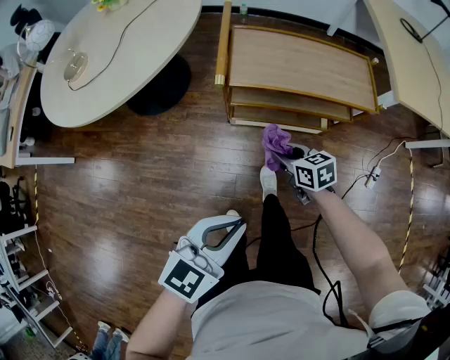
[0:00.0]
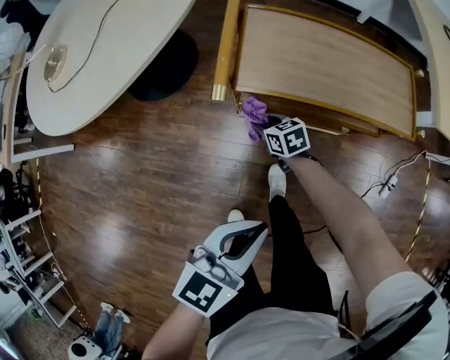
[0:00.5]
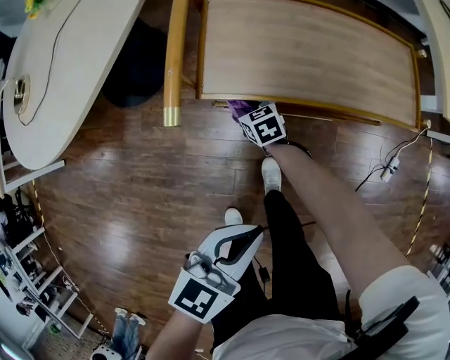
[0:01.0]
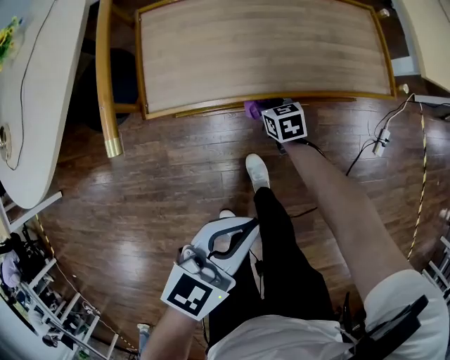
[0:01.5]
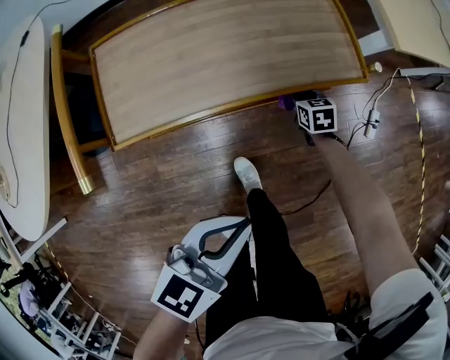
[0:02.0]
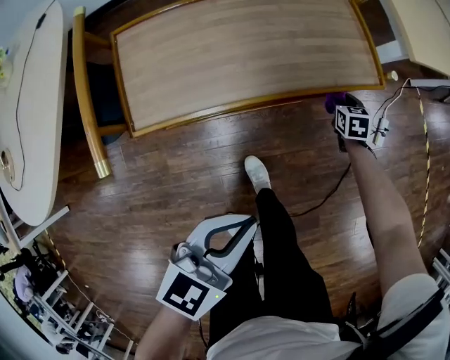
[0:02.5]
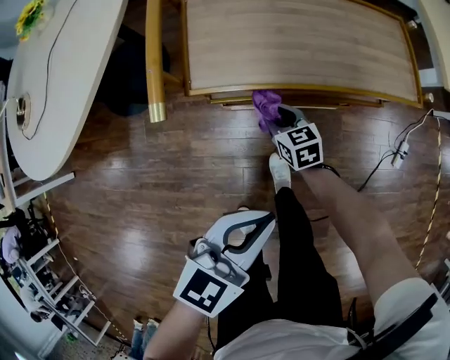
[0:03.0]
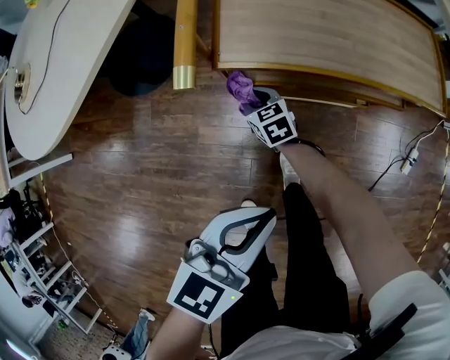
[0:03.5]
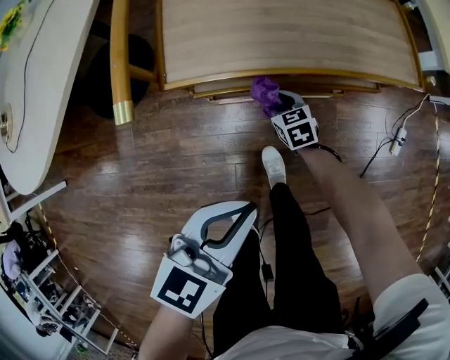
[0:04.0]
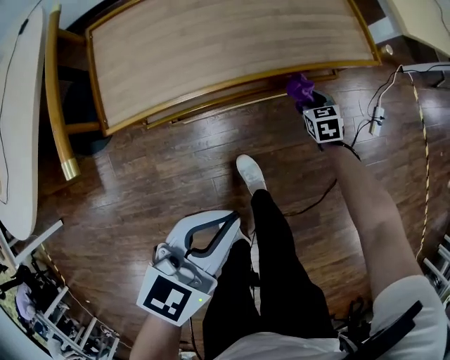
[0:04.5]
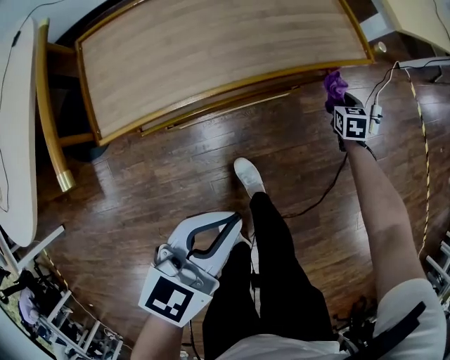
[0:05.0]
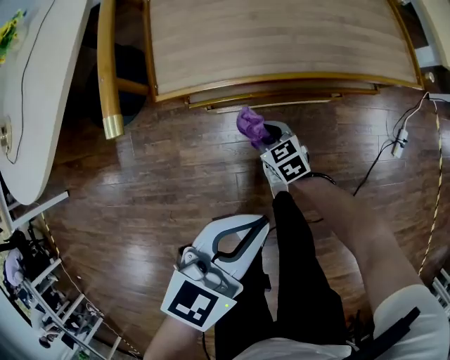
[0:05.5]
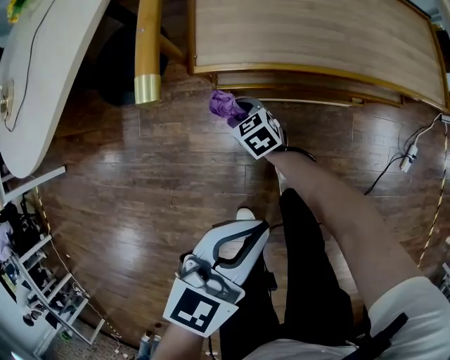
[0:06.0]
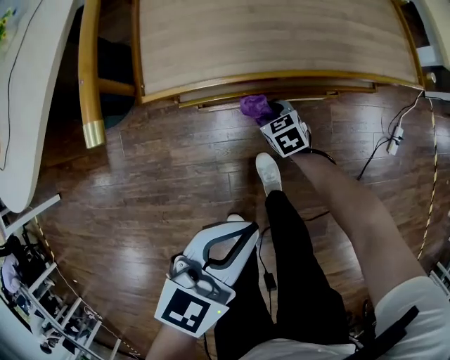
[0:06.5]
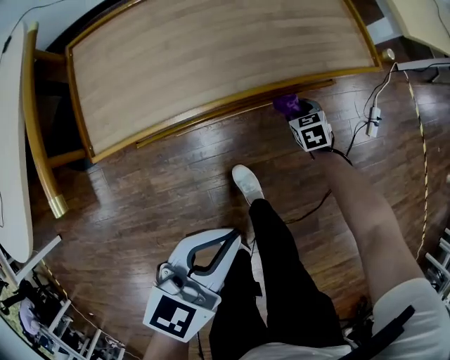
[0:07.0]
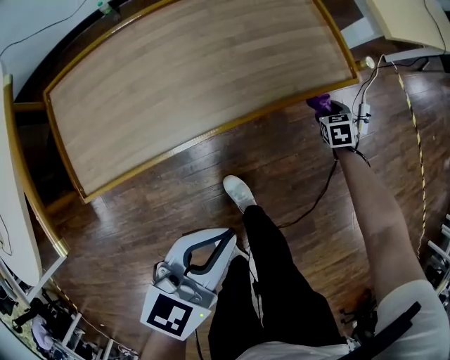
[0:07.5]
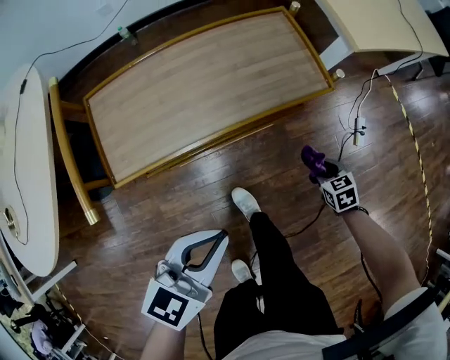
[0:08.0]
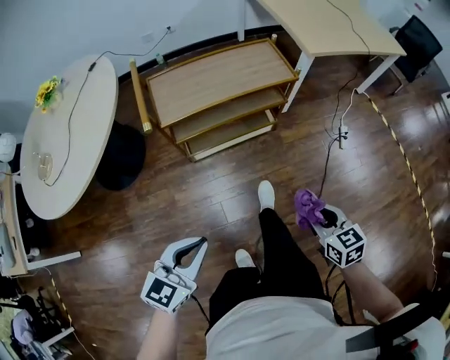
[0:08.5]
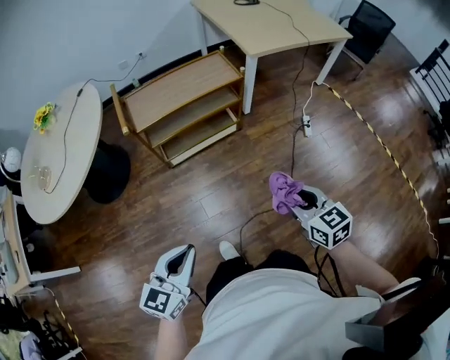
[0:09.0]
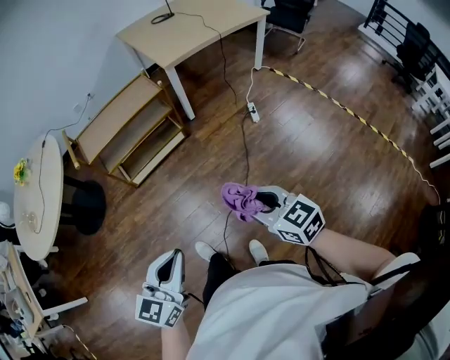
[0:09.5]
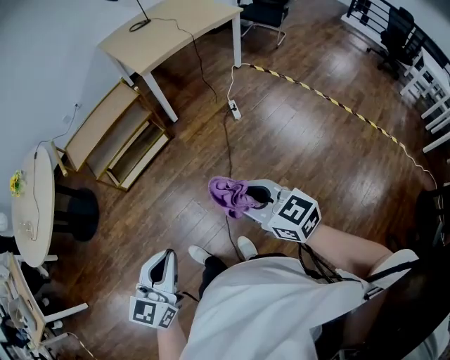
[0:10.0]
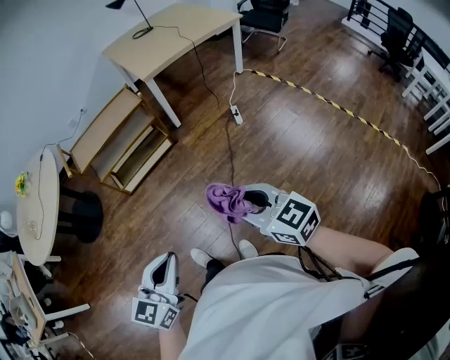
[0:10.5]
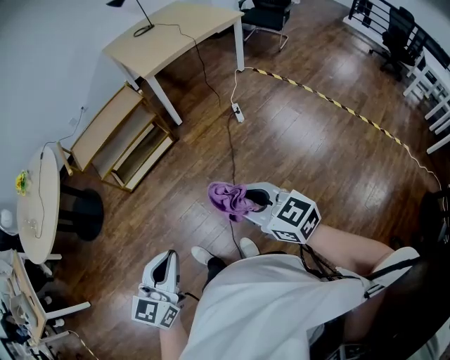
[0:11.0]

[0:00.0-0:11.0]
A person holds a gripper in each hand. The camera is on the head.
0.0 to 2.0 s: The left gripper changes place by some 30 cm, and rotates about 20 degrees. The right gripper ends up roughly 50 cm from where it was, and turns by about 40 degrees.
2.0 to 3.5 s: The left gripper moves roughly 15 cm. The right gripper ends up about 40 cm from where it was, and rotates about 40 degrees.
5.5 to 7.5 s: The right gripper shifts by roughly 50 cm, and rotates some 50 degrees, while the left gripper shifts by roughly 10 cm.
7.5 to 9.0 s: The two grippers travel together, some 50 cm. The right gripper points its fingers some 30 degrees further upward.
9.0 to 11.0 s: Both grippers move to the right and backward, some 35 cm.

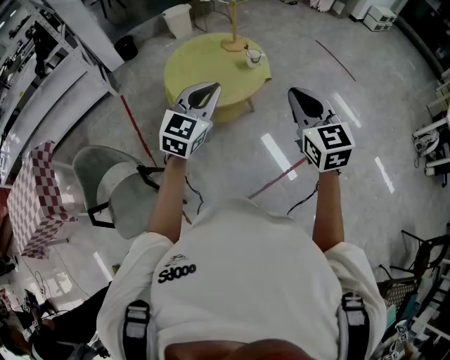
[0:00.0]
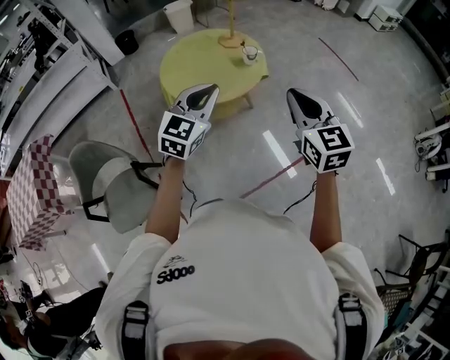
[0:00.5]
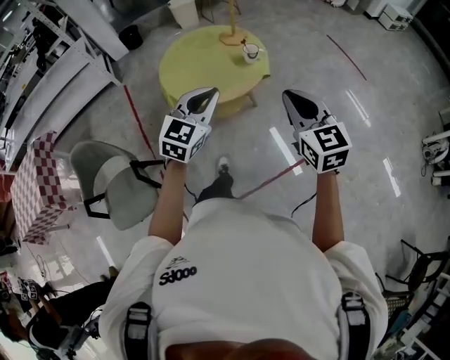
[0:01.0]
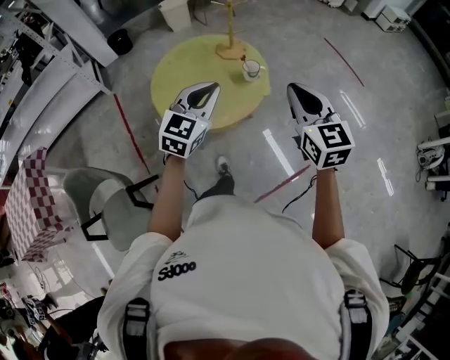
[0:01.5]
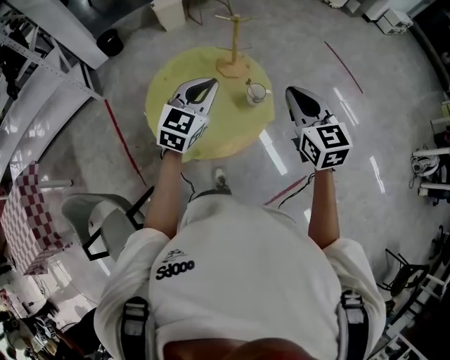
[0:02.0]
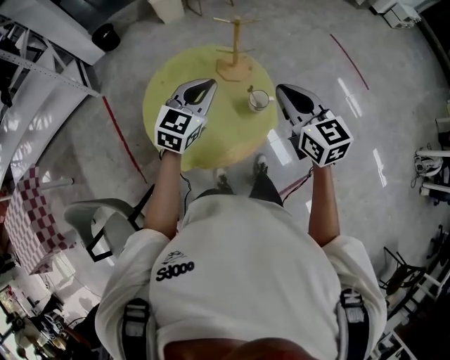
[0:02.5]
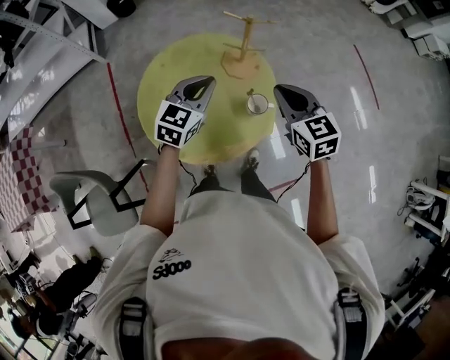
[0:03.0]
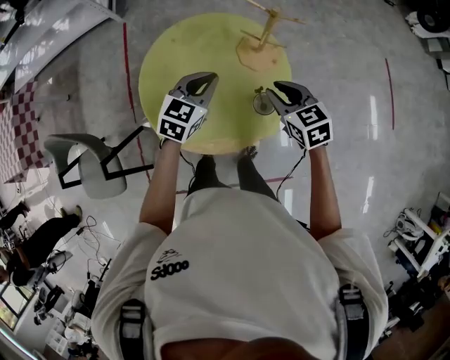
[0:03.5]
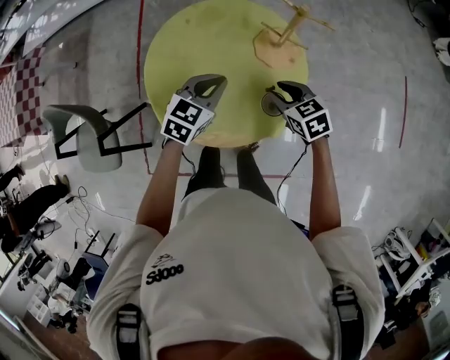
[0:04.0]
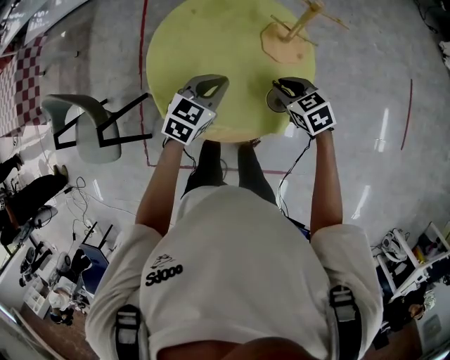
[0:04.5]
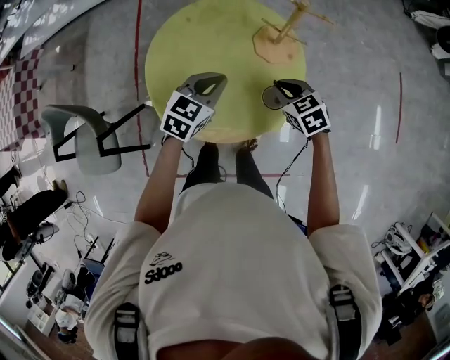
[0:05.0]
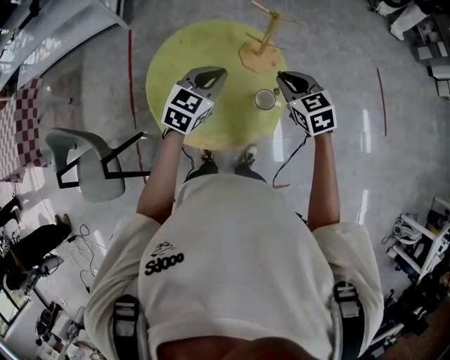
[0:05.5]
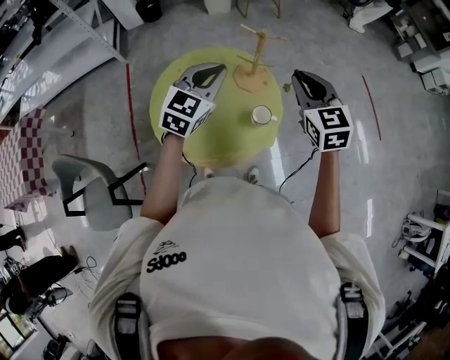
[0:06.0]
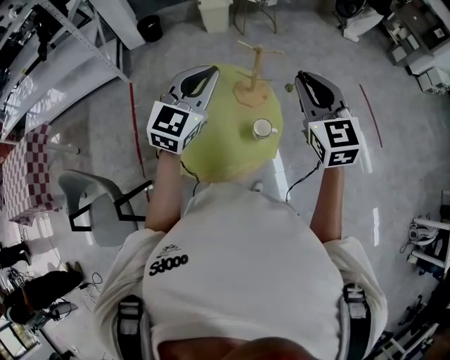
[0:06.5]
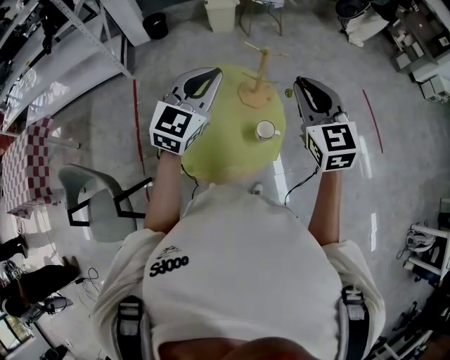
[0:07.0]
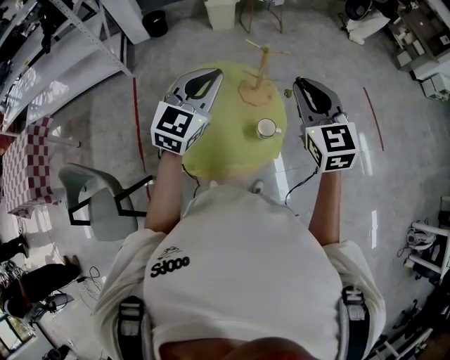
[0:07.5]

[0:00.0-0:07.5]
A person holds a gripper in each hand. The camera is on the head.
0.0 to 2.0 s: The two grippers go some 35 cm forward.
2.0 to 4.0 s: The grippers both shift downward by some 25 cm. The left gripper swivels about 40 degrees. The right gripper turns by roughly 60 degrees, and opens up.
4.0 to 5.5 s: The two grippers go roughly 10 cm upward. The right gripper turns by roughly 20 degrees, and closes.
5.5 to 7.5 s: Both grippers move upward, about 20 cm. The left gripper turns by roughly 20 degrees, while the right gripper swivels approximately 30 degrees.

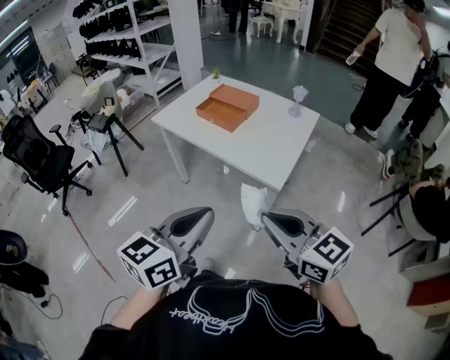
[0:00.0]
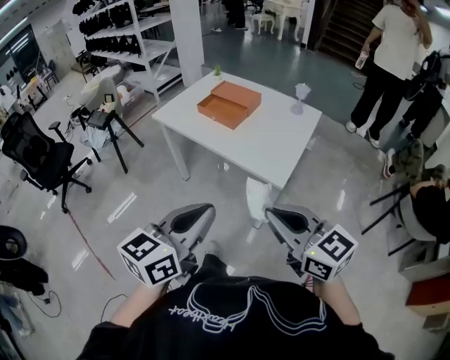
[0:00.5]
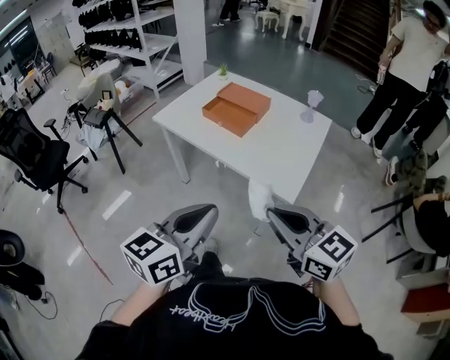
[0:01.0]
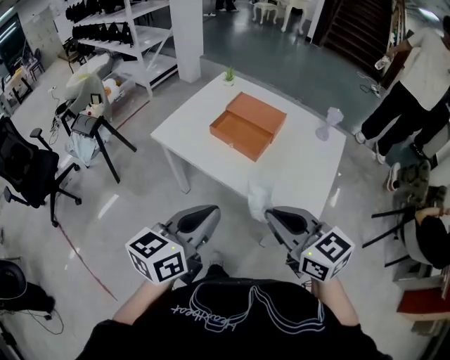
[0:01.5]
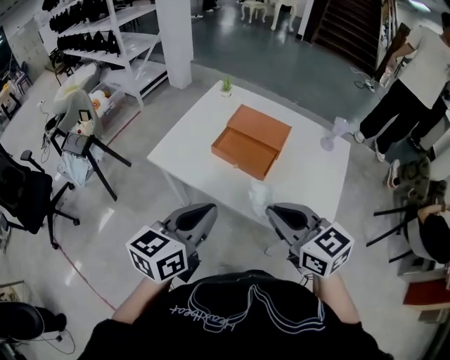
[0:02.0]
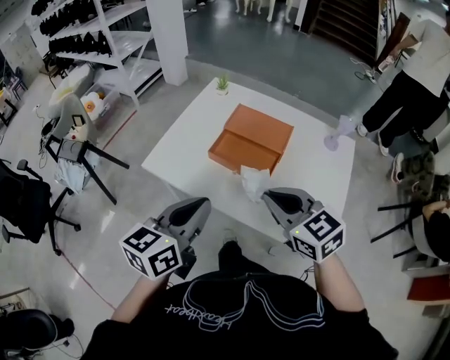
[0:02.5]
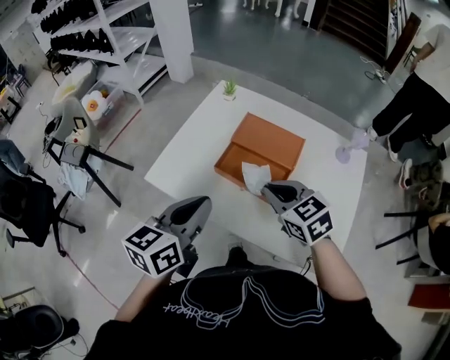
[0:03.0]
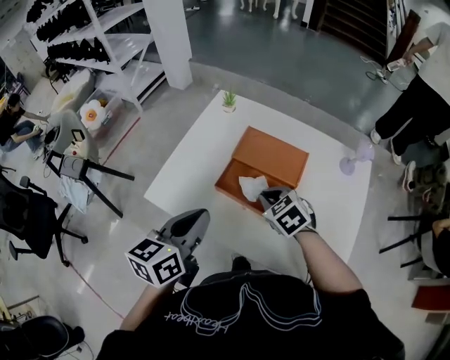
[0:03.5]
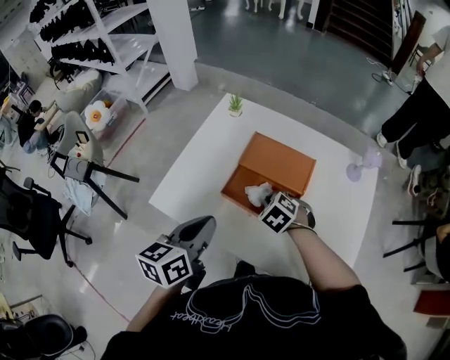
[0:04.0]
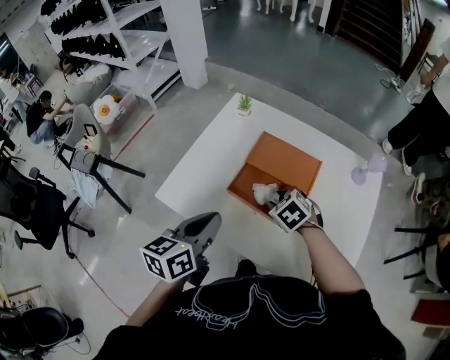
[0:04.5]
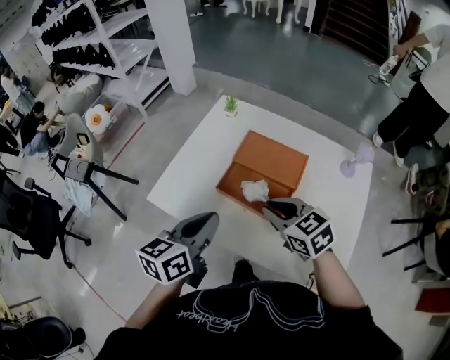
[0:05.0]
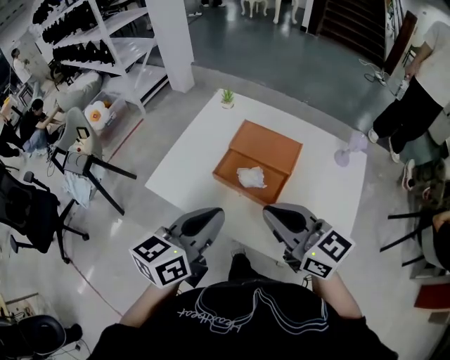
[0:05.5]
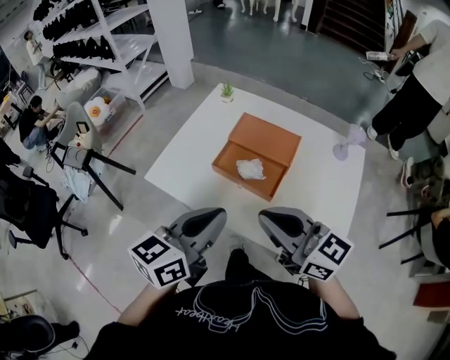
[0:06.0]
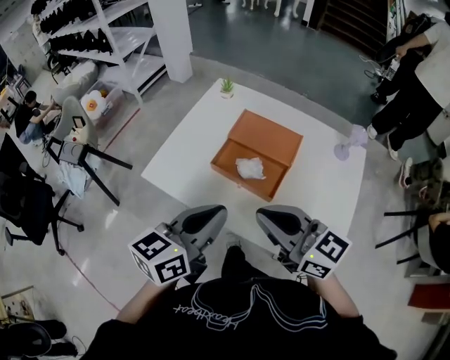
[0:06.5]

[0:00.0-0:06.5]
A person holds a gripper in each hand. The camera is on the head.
0.0 to 2.0 s: The two grippers go approximately 35 cm forward.
2.0 to 4.5 s: The left gripper moves forward, about 20 cm. Meanwhile the right gripper moves forward and downward, about 35 cm, points its fingers roughly 40 degrees further downward, and opens its fingers.
4.5 to 6.5 s: The right gripper shifts approximately 25 cm upward and backward, angles its fingers upward, by some 60 degrees, and closes, while the left gripper moves backward, upward and to the right, roughly 10 cm.

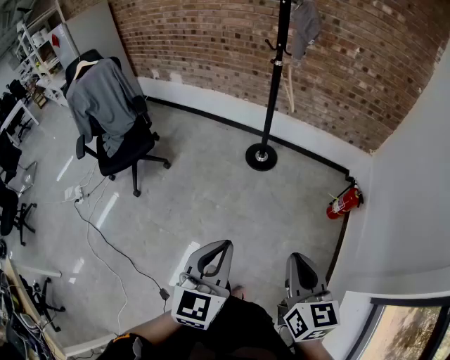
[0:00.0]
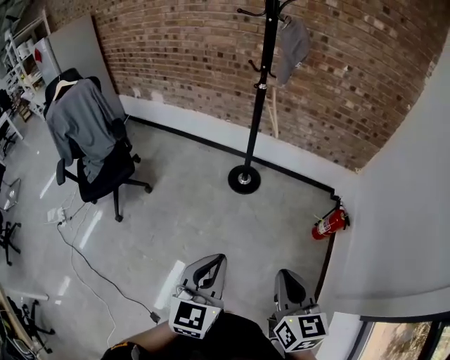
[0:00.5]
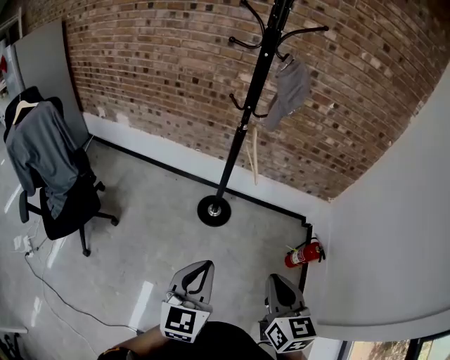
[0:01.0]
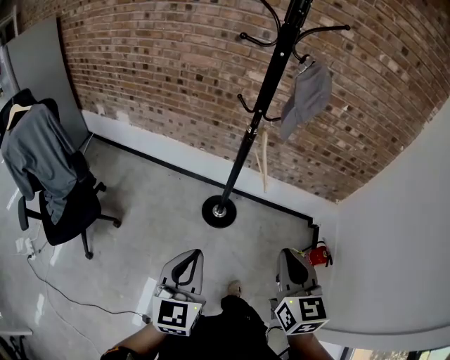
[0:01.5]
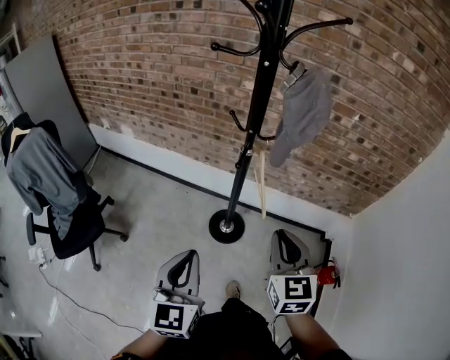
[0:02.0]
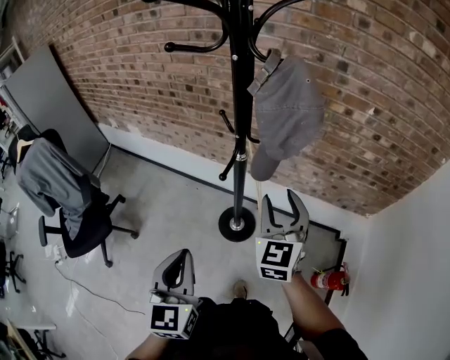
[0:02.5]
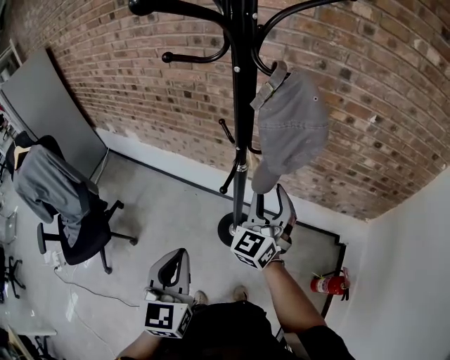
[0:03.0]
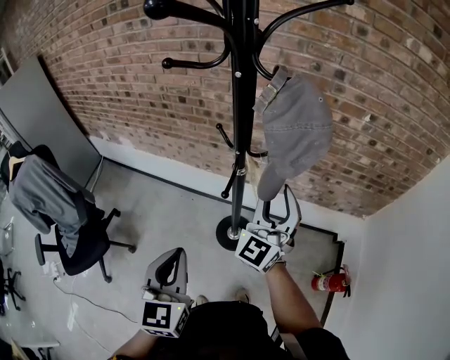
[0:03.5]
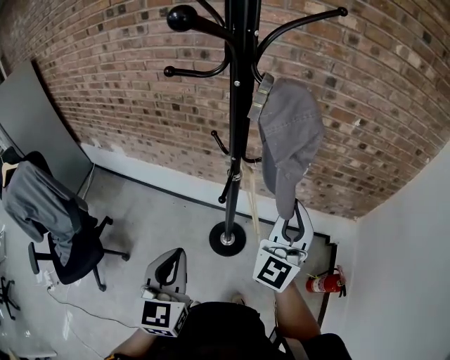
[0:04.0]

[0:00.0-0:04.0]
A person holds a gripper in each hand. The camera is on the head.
0.0 to 2.0 s: Both grippers are carried forward, roughly 60 cm. The right gripper rotates some 20 degrees.
2.0 to 4.0 s: The right gripper is displaced forward and upward by about 20 cm, points its fingers roughly 30 degrees further upward, and opens, then closes once more, while the left gripper travels forward by about 15 cm.
